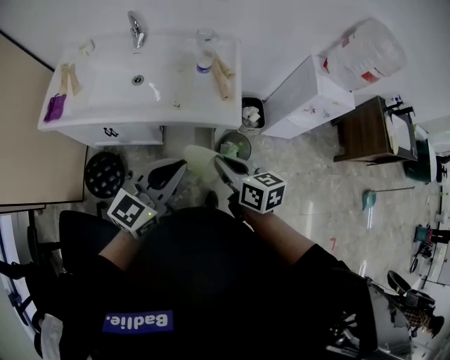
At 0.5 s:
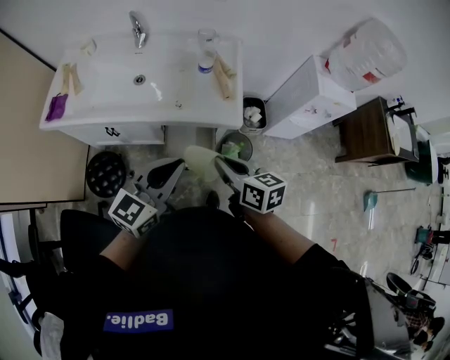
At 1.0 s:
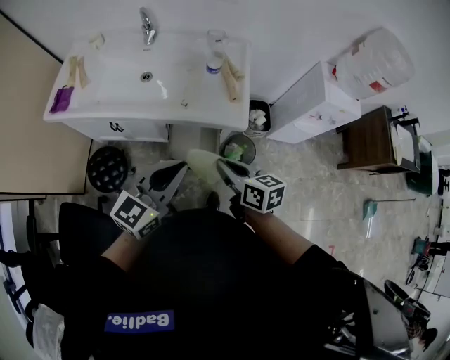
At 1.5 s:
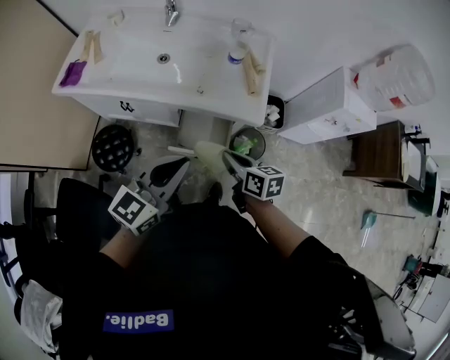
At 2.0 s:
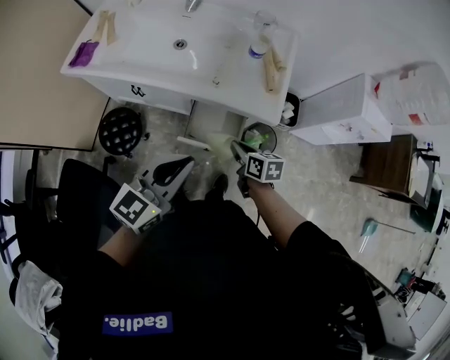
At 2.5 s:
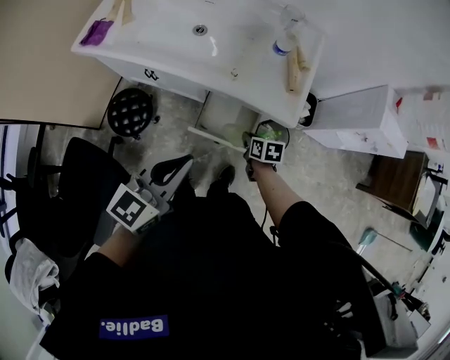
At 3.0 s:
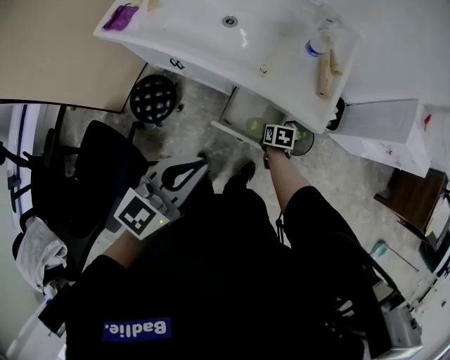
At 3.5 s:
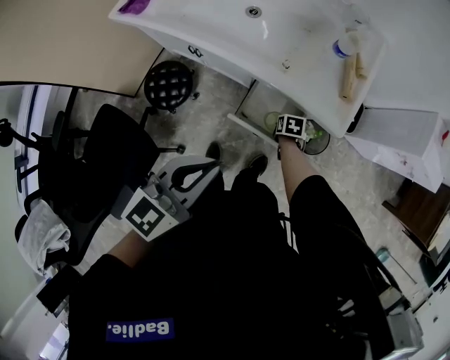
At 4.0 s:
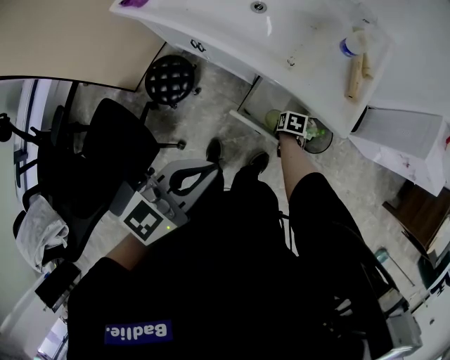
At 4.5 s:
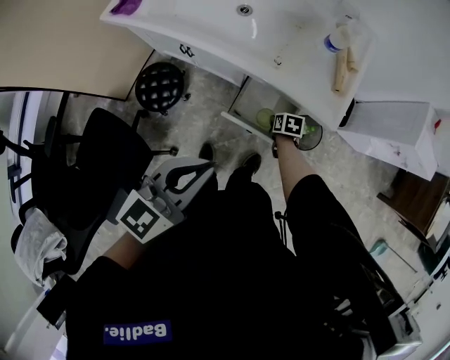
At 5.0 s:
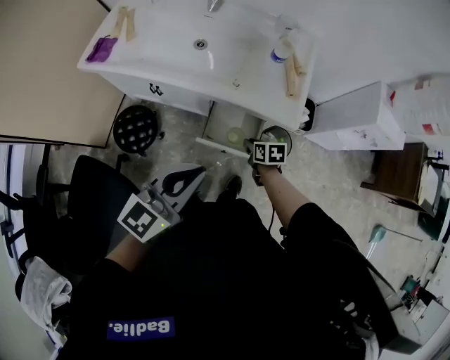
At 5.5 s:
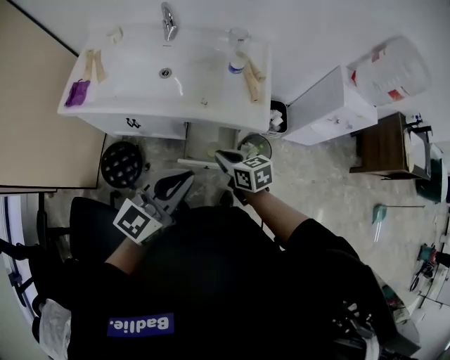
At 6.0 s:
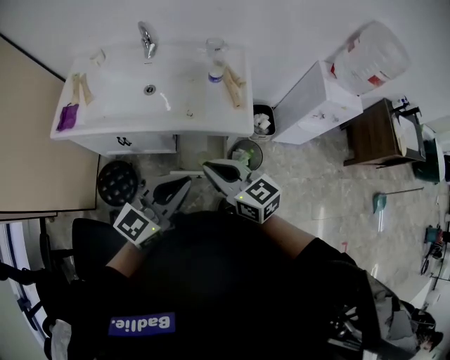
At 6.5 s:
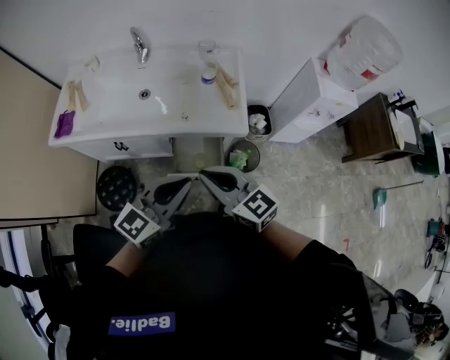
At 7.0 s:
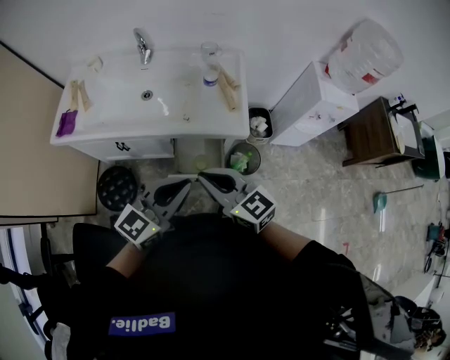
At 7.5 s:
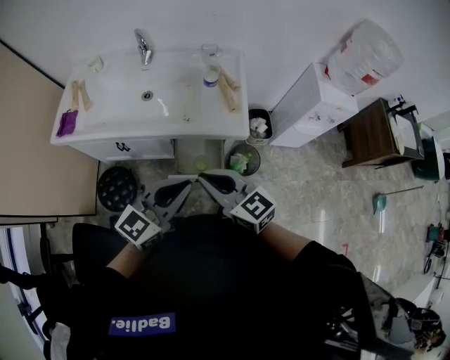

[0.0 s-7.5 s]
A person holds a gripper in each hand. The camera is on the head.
0.0 to 2.0 s: The left gripper travels to the left by some 5 cm, while the right gripper heads downward, covering about 20 cm.
2.0 to 4.0 s: The right gripper heads downward, covering roughly 25 cm, and points its fingers approximately 30 degrees further downward, while the left gripper goes about 5 cm to the left.
4.0 to 5.5 s: The right gripper goes roughly 35 cm upward, and points its fingers some 40 degrees further upward; the left gripper goes approximately 10 cm upward, and rotates about 30 degrees.
5.5 to 7.5 s: The right gripper shifts roughly 20 cm upward and backward, and changes its angle by some 30 degrees.

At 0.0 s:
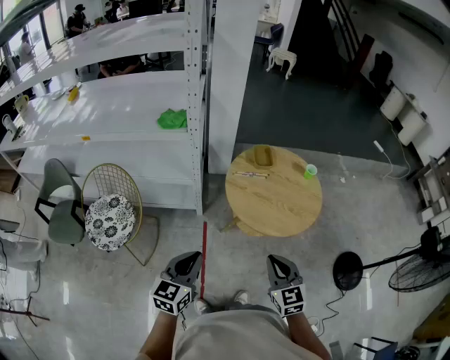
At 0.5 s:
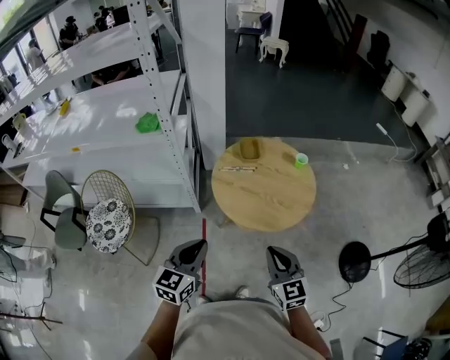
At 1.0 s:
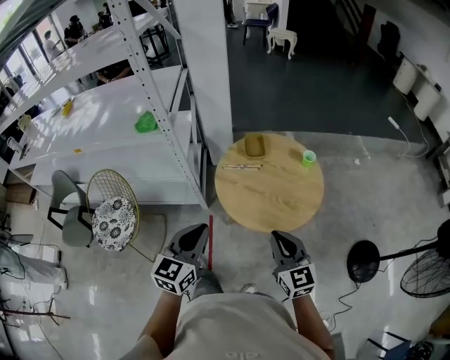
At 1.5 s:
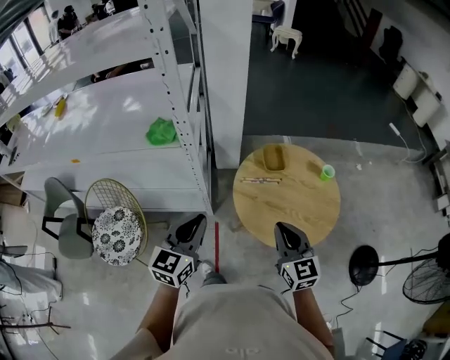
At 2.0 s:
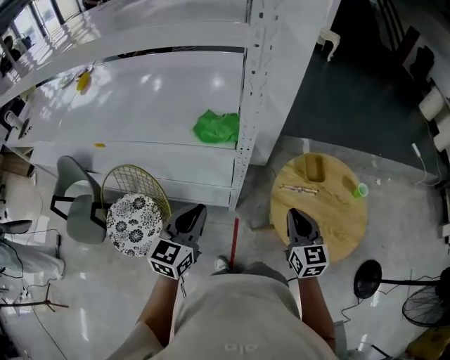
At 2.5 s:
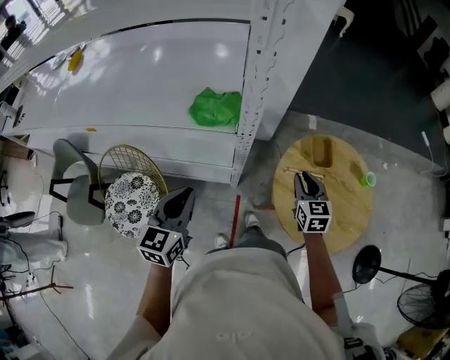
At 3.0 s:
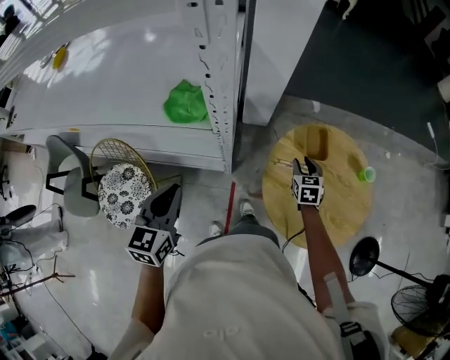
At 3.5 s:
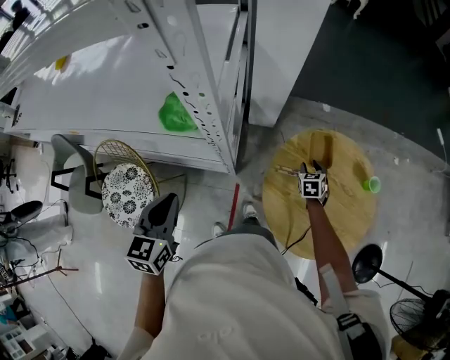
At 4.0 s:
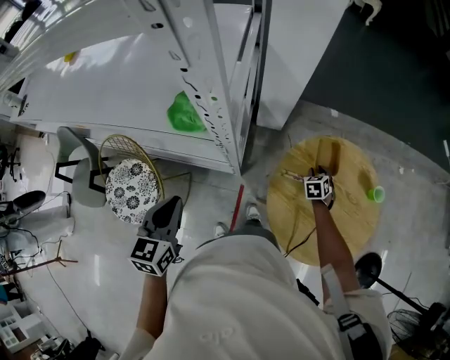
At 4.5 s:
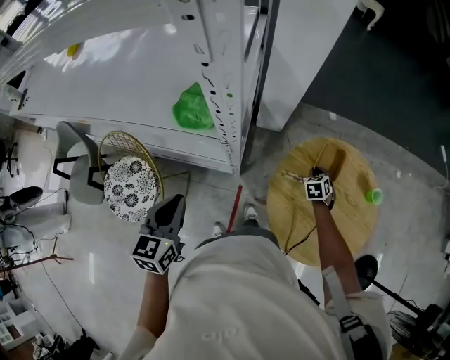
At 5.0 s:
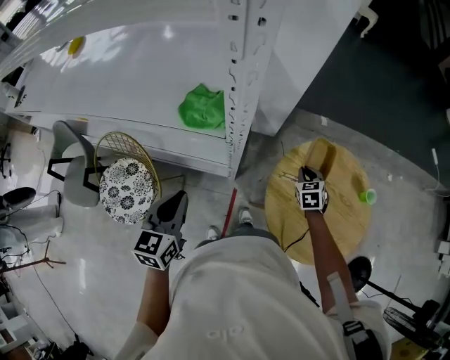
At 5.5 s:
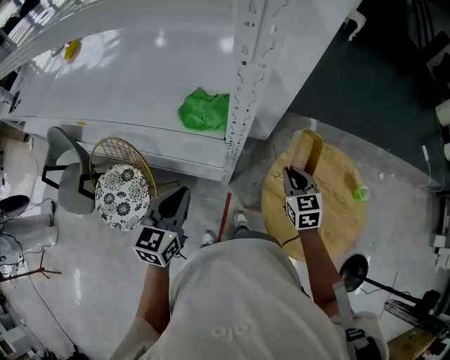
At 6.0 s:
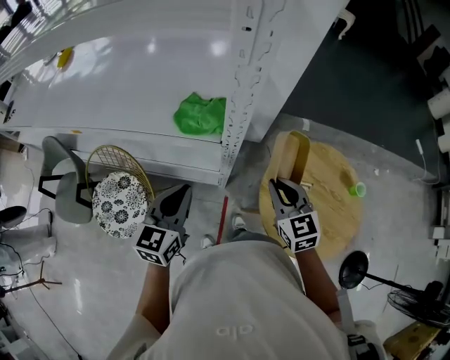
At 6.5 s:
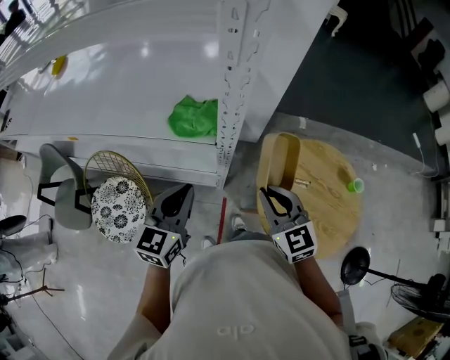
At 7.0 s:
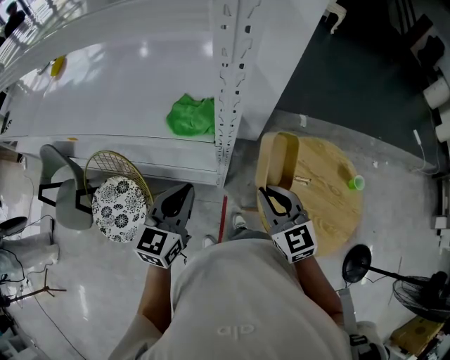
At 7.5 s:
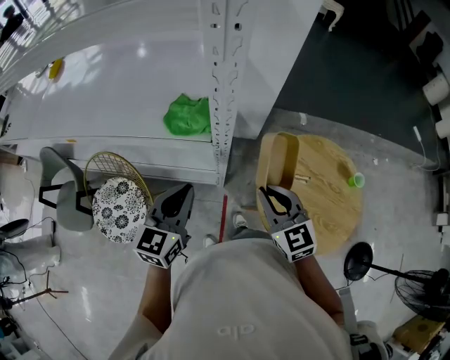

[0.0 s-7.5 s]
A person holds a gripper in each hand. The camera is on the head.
0.0 to 2.0 s: The grippers both shift forward and to the left by roughly 35 cm.
2.0 to 4.0 s: The right gripper heads downward, forward and to the right, covering about 40 cm, points its fingers about 40 degrees further downward, and opens its fingers. Meanwhile the left gripper shifts some 10 cm forward and downward, and rotates some 20 degrees.
4.0 to 5.5 s: The right gripper heads upward and to the left, covering some 30 cm, changes its angle by roughly 30 degrees, and closes its fingers.
5.5 to 7.5 s: The right gripper shifts approximately 15 cm backward, upward and to the left.

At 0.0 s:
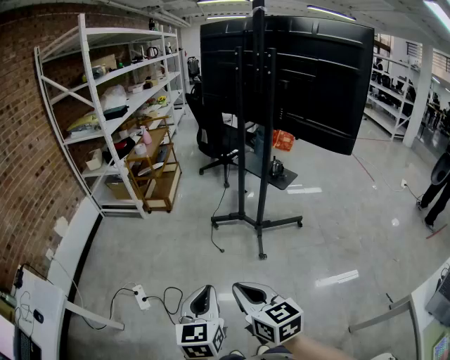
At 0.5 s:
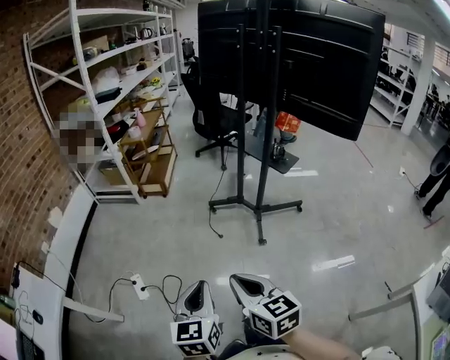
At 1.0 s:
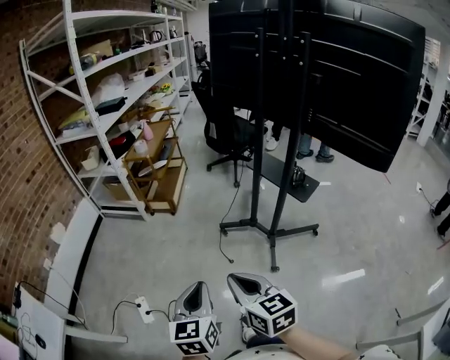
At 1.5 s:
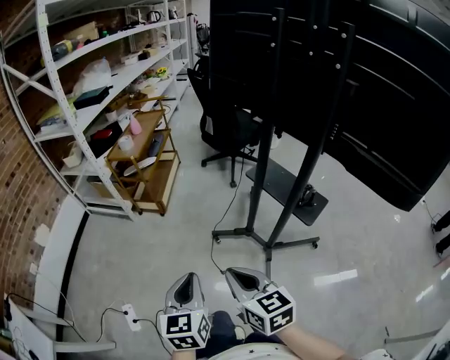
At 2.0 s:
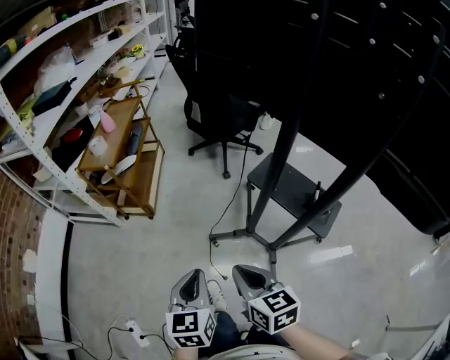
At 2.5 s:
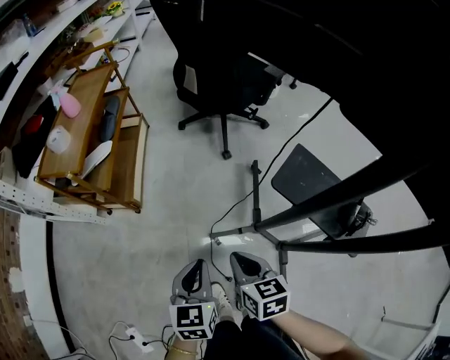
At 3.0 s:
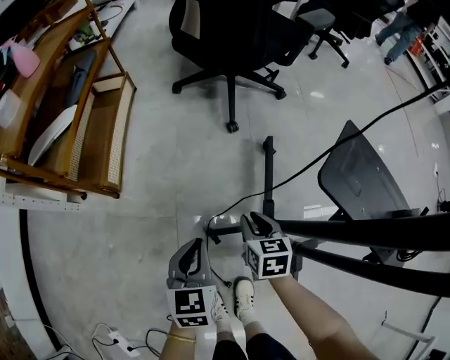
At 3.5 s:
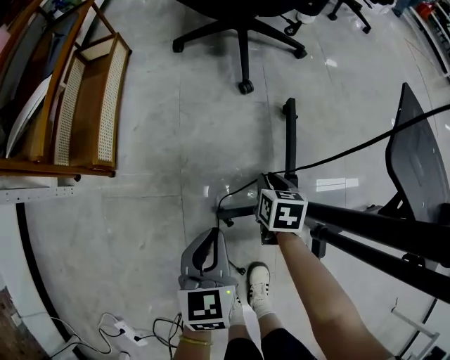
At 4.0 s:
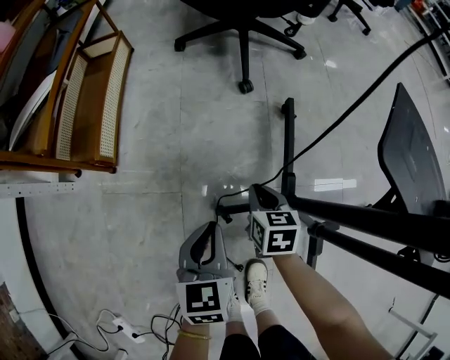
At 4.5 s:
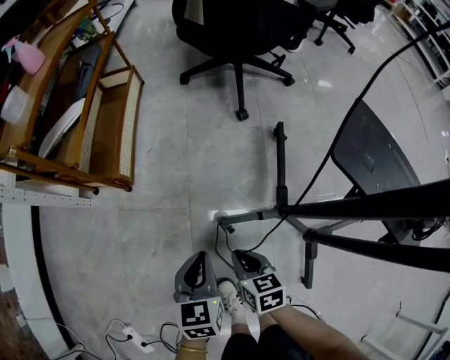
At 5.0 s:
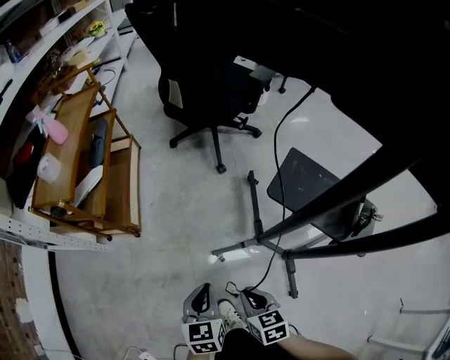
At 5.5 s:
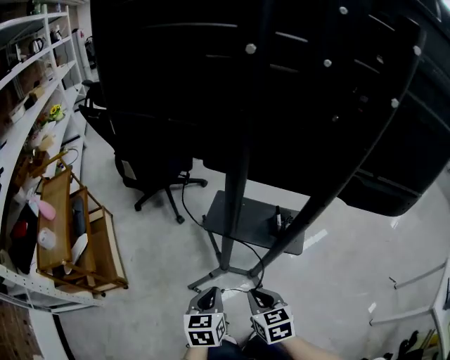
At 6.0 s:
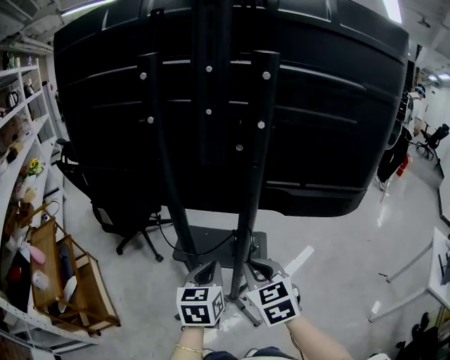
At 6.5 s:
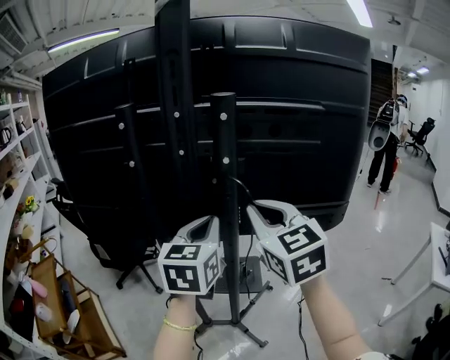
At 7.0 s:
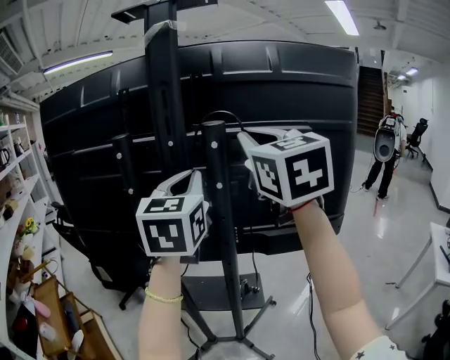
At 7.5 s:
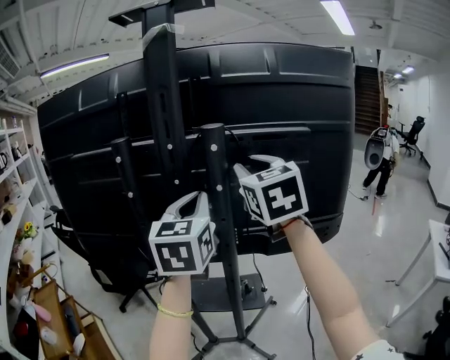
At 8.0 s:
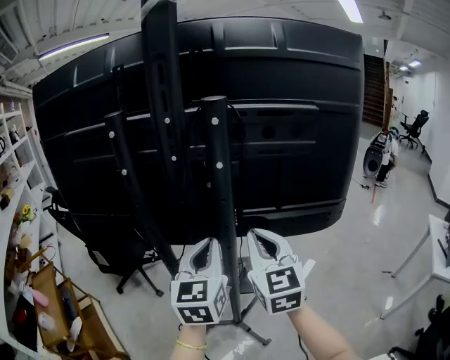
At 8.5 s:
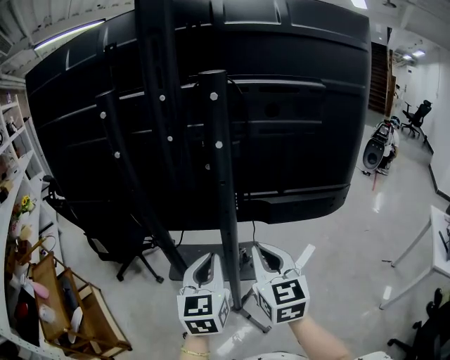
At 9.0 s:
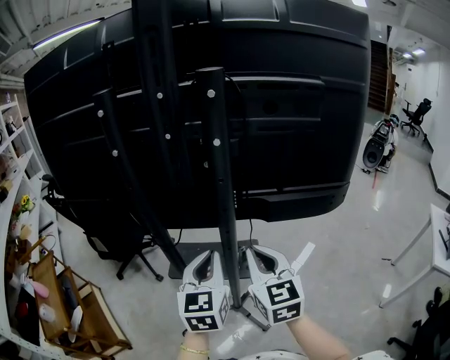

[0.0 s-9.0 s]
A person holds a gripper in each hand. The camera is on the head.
0.0 to 2.0 s: The pair of grippers is taken forward, roughly 70 cm.
2.0 to 4.5 s: Both grippers travel together downward and forward, roughly 50 cm. The right gripper rotates some 20 degrees.
4.5 to 7.0 s: The pair of grippers is taken roughly 40 cm. The two grippers go some 1 m upward. The right gripper points its fingers some 50 degrees further upward; the left gripper tilts its fingers some 40 degrees upward.
7.0 to 9.0 s: The two grippers go some 30 cm downward. The right gripper opens, then closes again.

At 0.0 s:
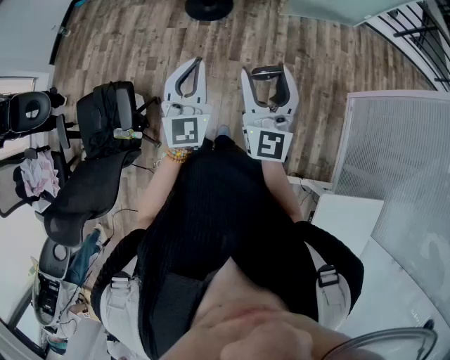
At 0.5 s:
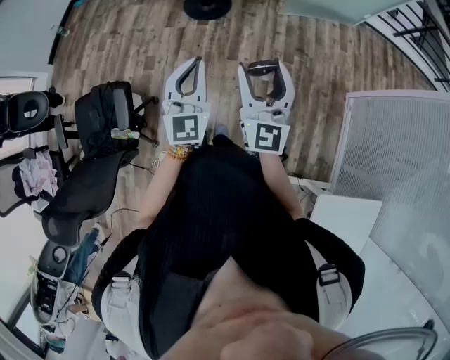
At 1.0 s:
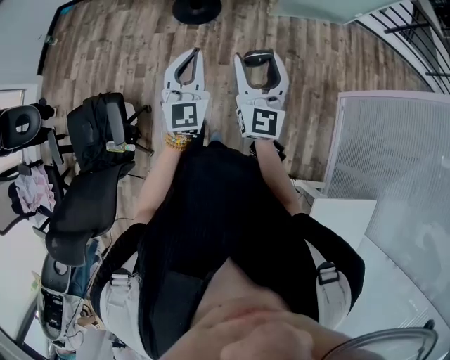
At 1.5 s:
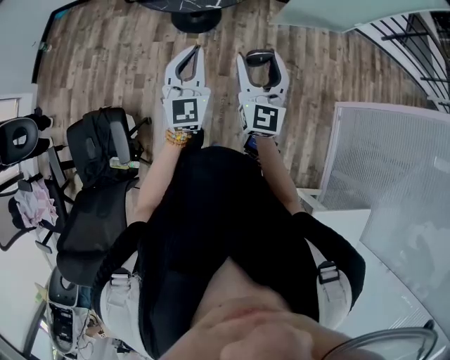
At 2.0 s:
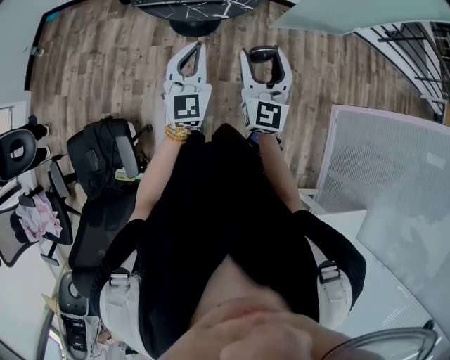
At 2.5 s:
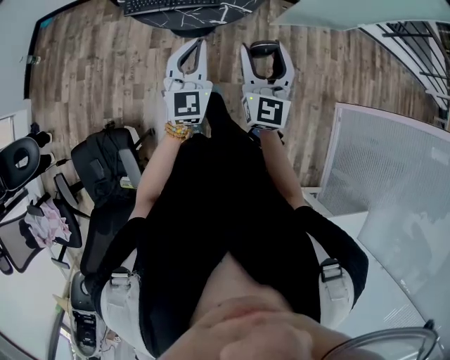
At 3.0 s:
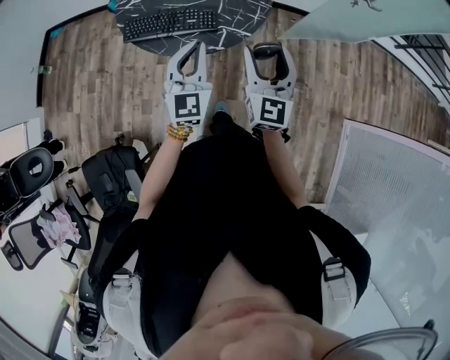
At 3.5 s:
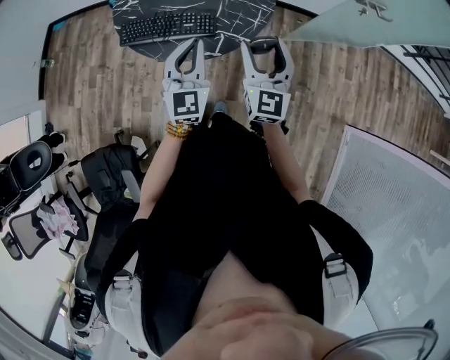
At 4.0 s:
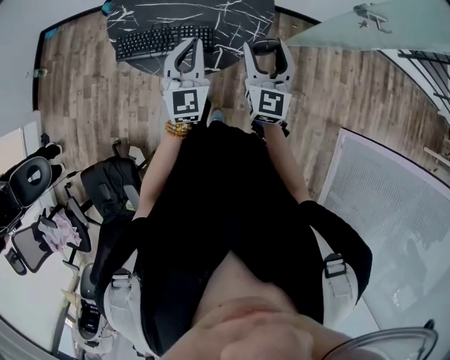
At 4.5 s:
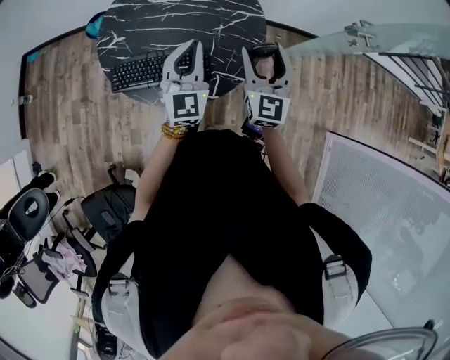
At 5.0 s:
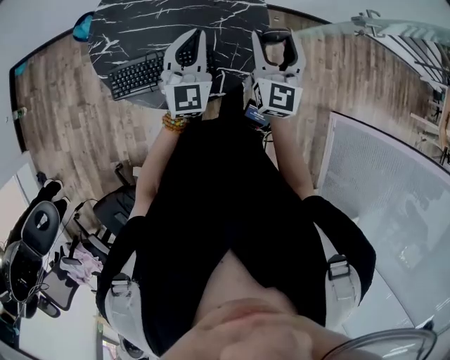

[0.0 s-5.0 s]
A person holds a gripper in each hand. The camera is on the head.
0.0 to 2.5 s: The two grippers travel together, forward, approximately 40 cm.
2.5 to 5.0 s: The pair of grippers is taken forward, roughly 40 cm.
